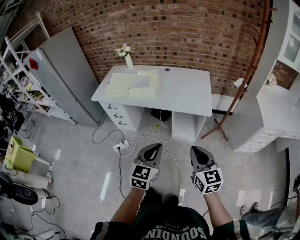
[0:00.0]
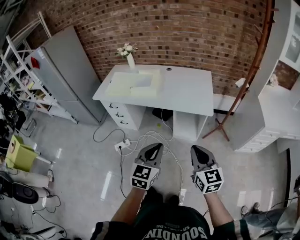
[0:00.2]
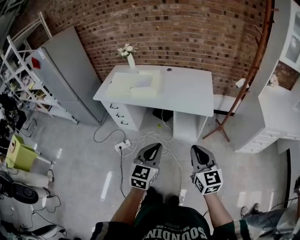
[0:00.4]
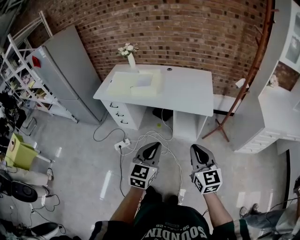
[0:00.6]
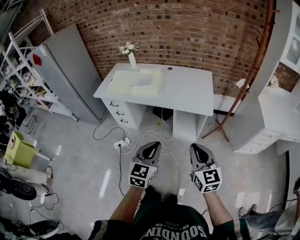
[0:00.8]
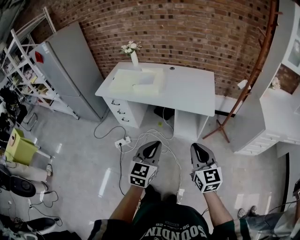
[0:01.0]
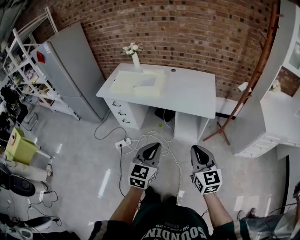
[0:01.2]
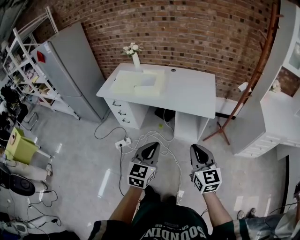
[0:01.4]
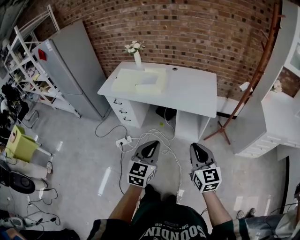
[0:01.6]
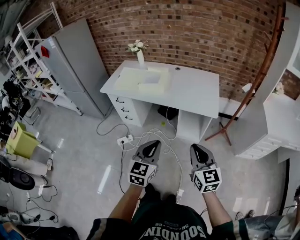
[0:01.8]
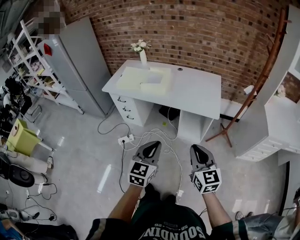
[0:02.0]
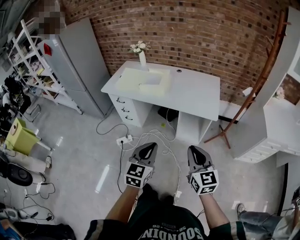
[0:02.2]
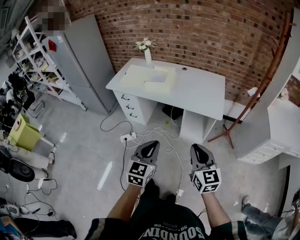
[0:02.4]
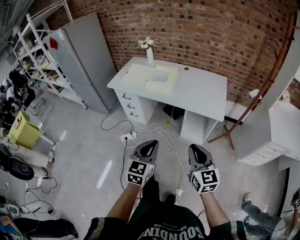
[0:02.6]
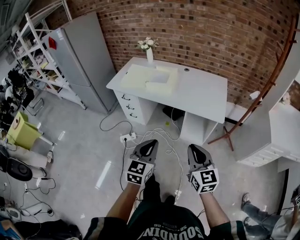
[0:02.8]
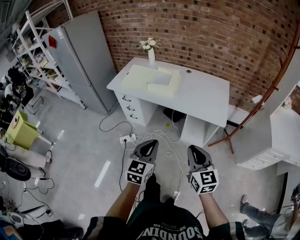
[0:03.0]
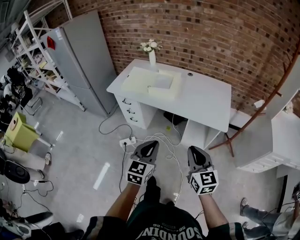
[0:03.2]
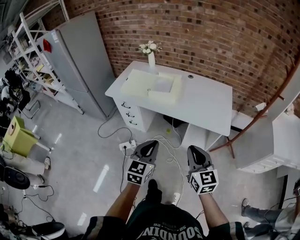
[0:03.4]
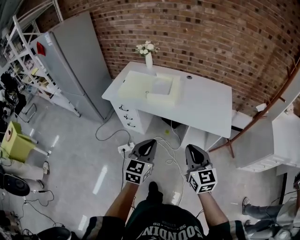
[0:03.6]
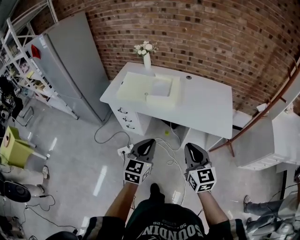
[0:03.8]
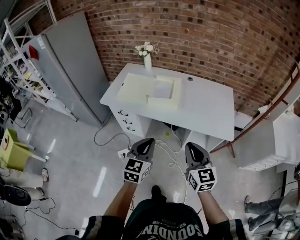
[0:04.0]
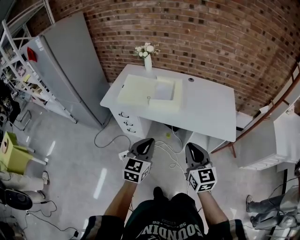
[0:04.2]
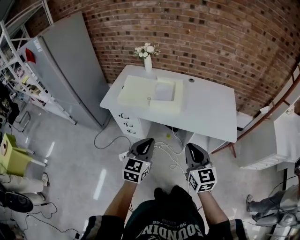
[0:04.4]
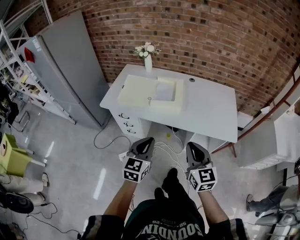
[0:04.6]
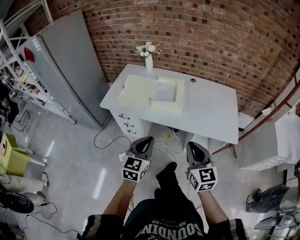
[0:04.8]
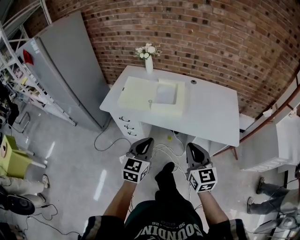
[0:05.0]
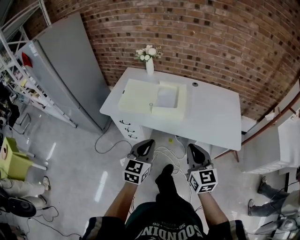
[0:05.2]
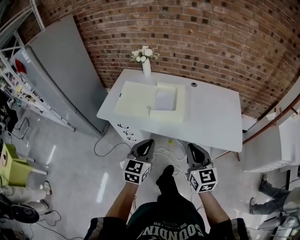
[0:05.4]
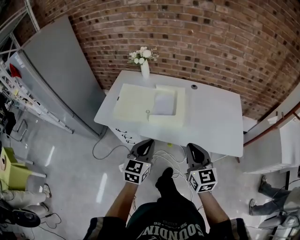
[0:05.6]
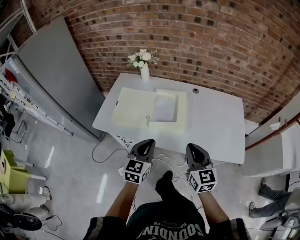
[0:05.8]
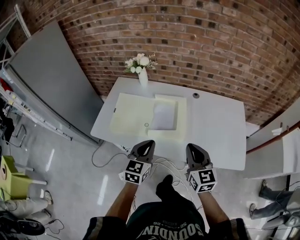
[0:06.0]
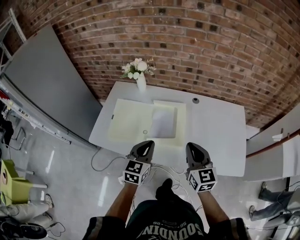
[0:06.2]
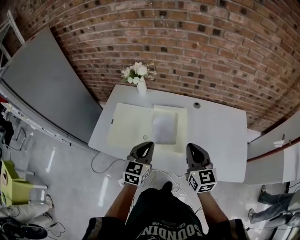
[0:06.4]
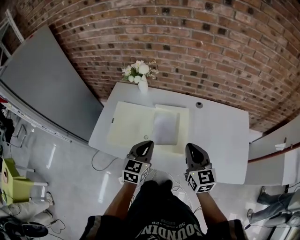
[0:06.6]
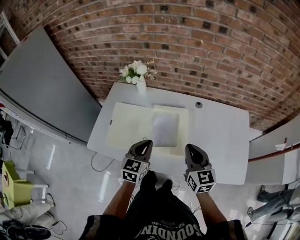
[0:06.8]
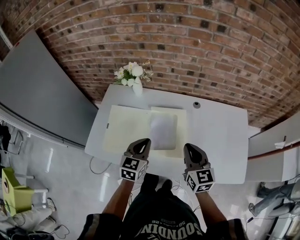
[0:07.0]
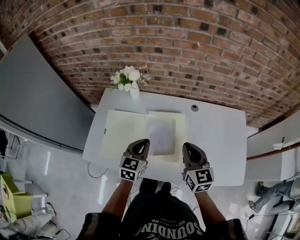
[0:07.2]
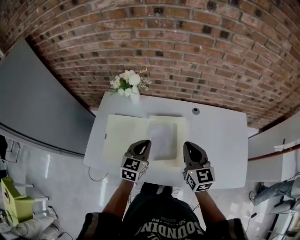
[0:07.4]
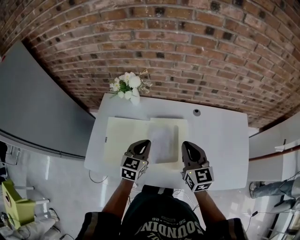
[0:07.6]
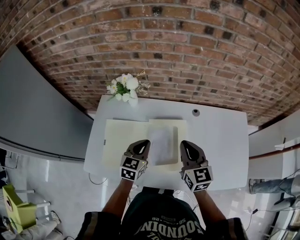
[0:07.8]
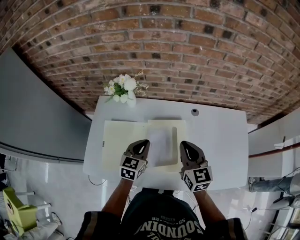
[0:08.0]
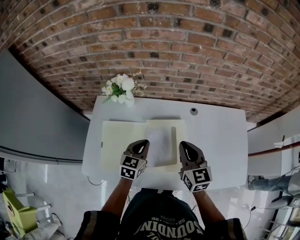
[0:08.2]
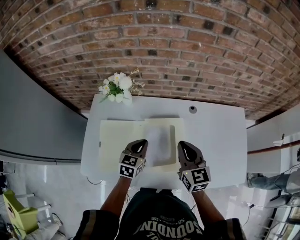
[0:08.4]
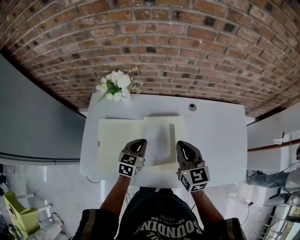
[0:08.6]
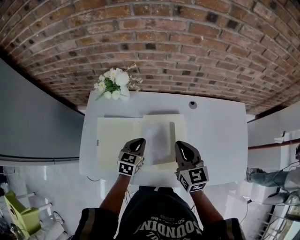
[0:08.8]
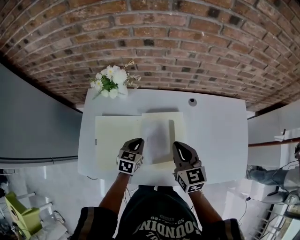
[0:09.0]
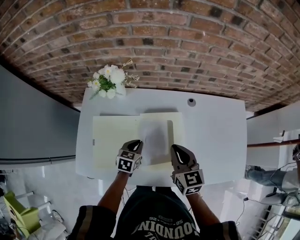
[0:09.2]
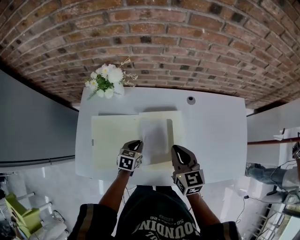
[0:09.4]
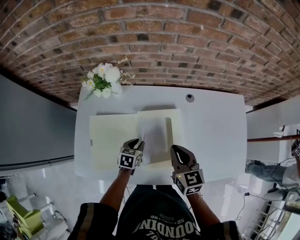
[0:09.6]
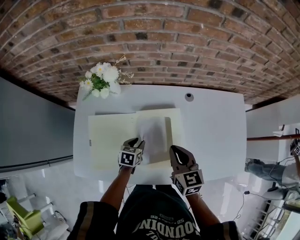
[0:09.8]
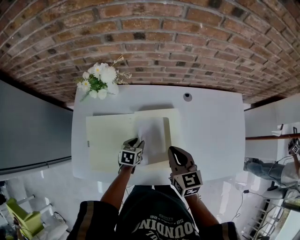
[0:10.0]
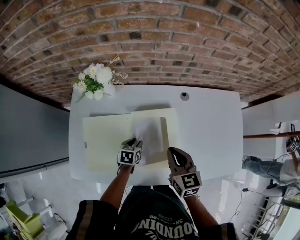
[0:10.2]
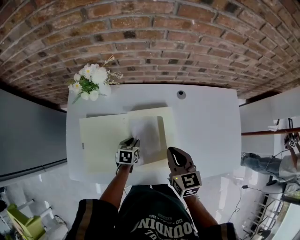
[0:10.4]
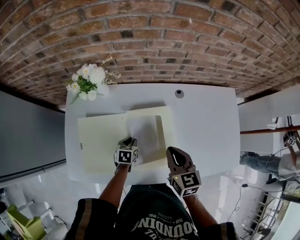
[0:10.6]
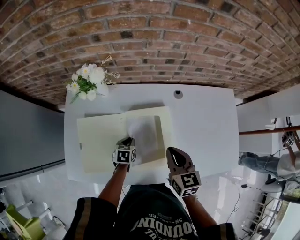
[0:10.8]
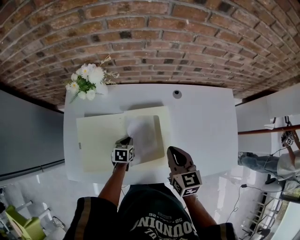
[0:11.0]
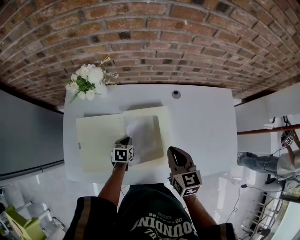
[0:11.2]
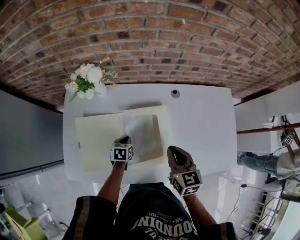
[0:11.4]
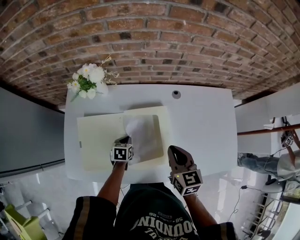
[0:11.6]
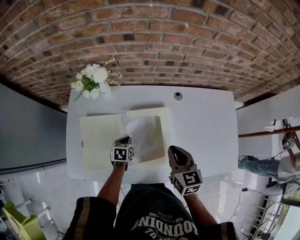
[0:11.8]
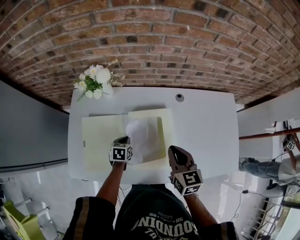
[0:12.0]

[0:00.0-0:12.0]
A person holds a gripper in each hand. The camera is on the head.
0.0 to 1.6 s: The grippers stay close to where they were, moving slightly.
1.6 to 3.0 s: The grippers both shift to the left by approximately 5 cm.
3.0 to 4.4 s: The grippers both shift forward and to the left by roughly 25 cm.
4.4 to 6.0 s: The grippers both shift forward by roughly 25 cm.
6.0 to 7.6 s: Both grippers move forward, roughly 25 cm.
7.6 to 9.0 s: The left gripper goes approximately 10 cm downward. Meanwhile the right gripper shifts roughly 5 cm downward.
9.0 to 10.4 s: The left gripper goes some 10 cm downward, and opens up.
10.4 to 12.0 s: The left gripper closes up.

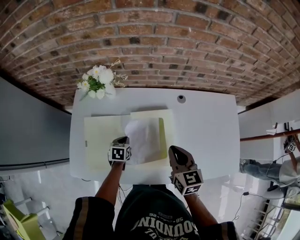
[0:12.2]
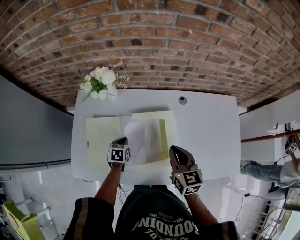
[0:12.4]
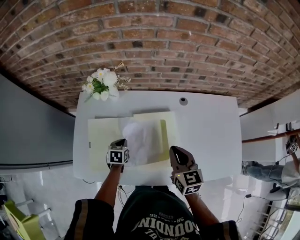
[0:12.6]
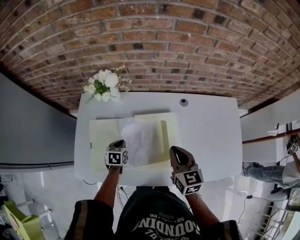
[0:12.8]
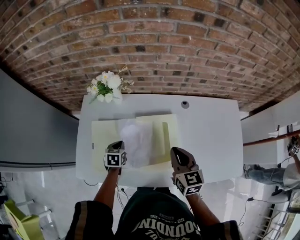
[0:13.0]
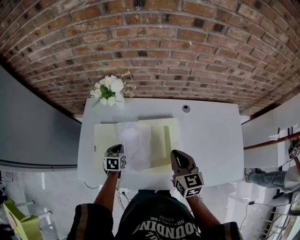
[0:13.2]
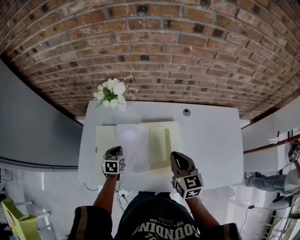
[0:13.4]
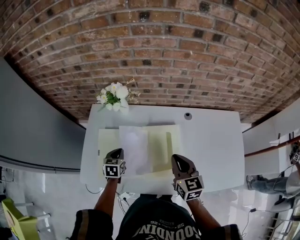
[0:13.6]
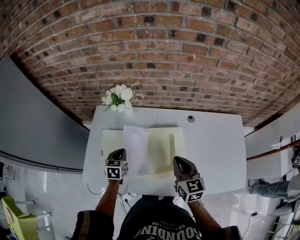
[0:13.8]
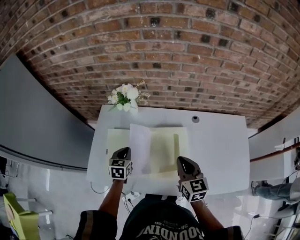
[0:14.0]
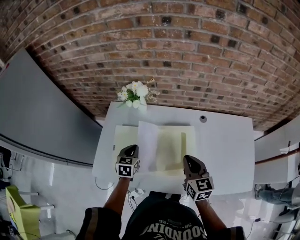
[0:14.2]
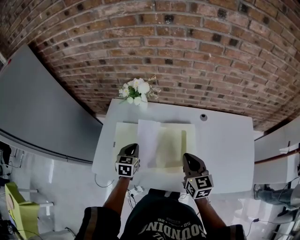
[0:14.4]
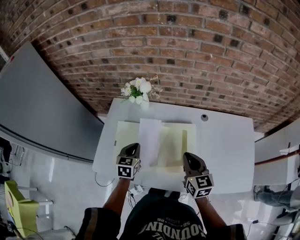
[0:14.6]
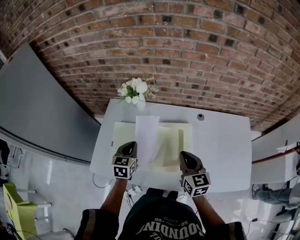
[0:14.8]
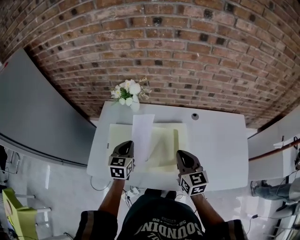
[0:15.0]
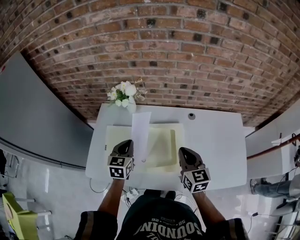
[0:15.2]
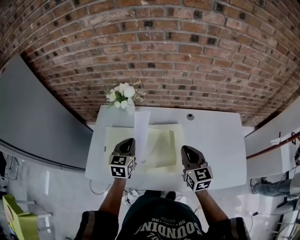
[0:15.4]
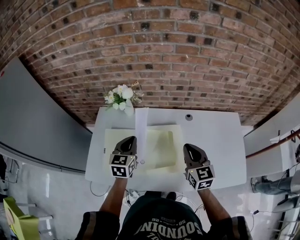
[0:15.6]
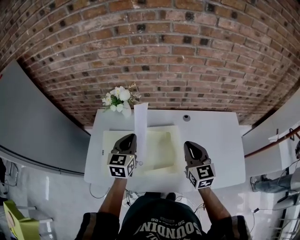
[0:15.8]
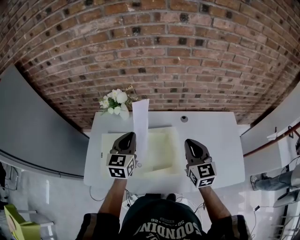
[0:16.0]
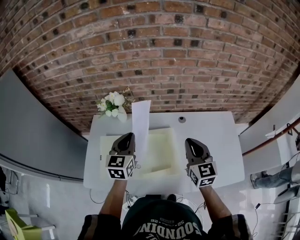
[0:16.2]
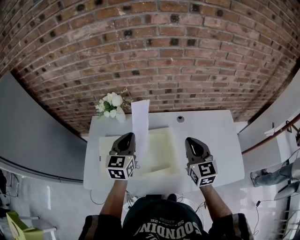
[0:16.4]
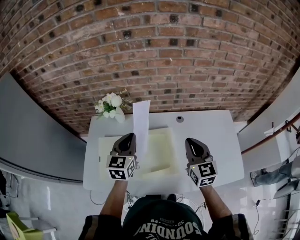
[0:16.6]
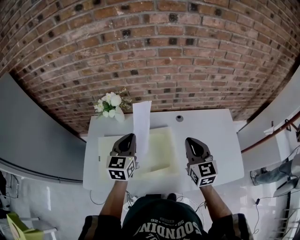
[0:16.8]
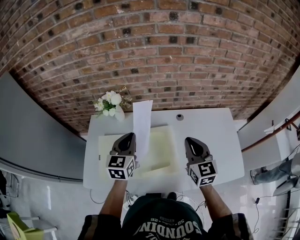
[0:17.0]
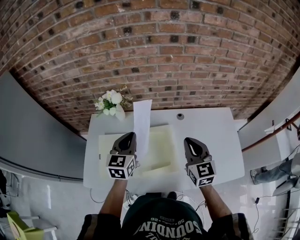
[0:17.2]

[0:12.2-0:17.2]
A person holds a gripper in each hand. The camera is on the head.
12.2 to 13.8 s: The left gripper travels upward and to the left by roughly 15 cm.
13.8 to 15.6 s: The left gripper moves upward and to the right, approximately 15 cm, and swivels approximately 20 degrees. The right gripper moves to the right, roughly 5 cm.
15.6 to 17.2 s: The left gripper moves upward, some 5 cm.

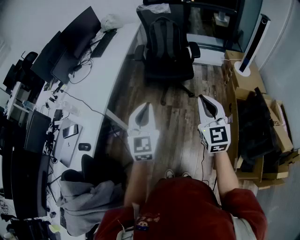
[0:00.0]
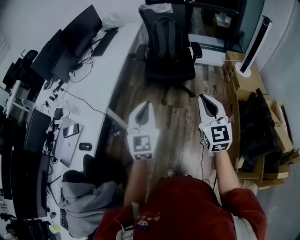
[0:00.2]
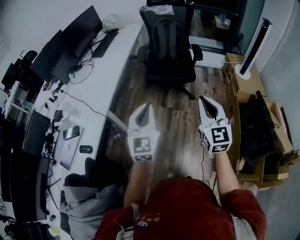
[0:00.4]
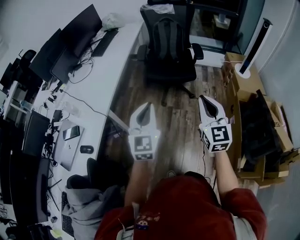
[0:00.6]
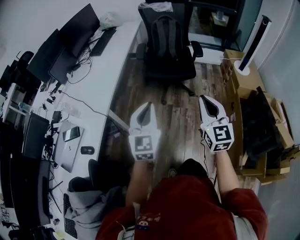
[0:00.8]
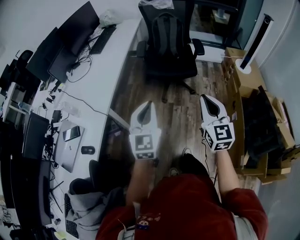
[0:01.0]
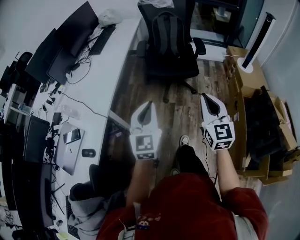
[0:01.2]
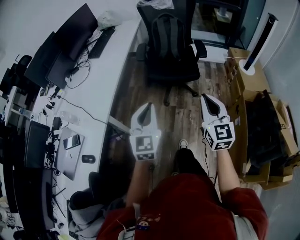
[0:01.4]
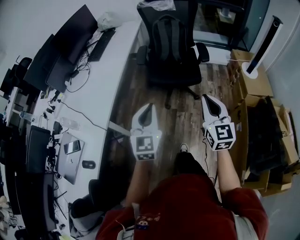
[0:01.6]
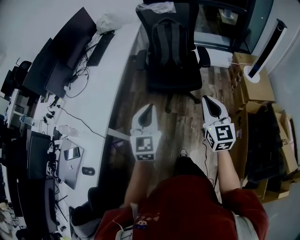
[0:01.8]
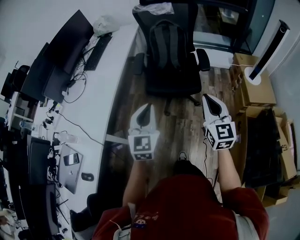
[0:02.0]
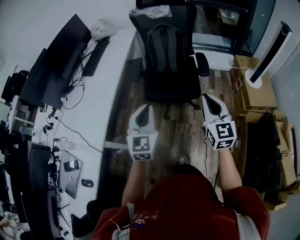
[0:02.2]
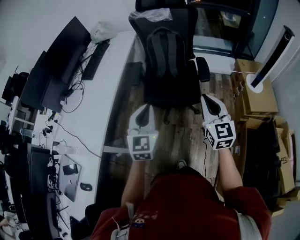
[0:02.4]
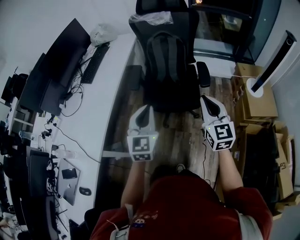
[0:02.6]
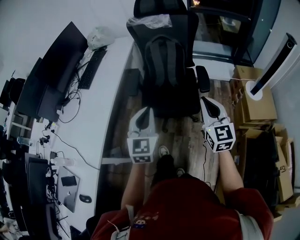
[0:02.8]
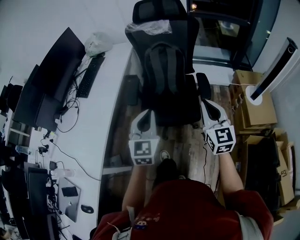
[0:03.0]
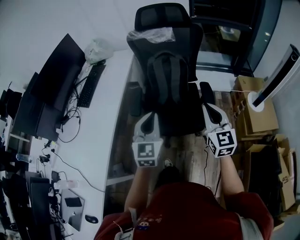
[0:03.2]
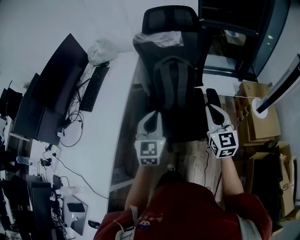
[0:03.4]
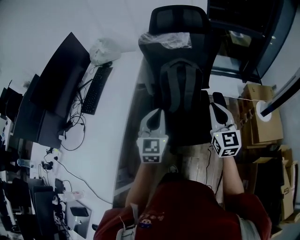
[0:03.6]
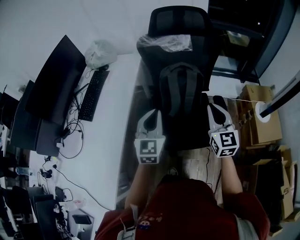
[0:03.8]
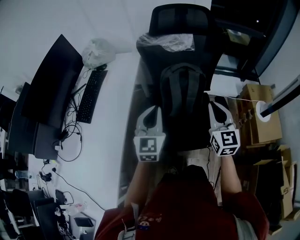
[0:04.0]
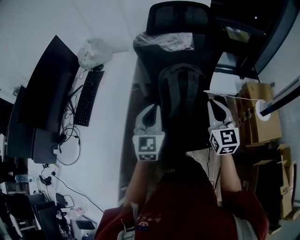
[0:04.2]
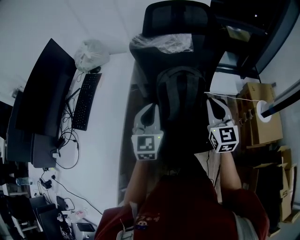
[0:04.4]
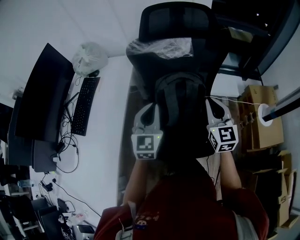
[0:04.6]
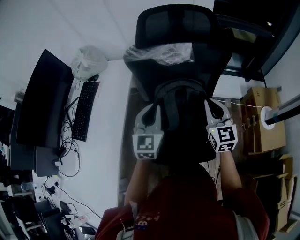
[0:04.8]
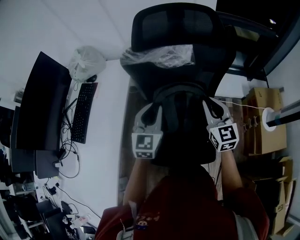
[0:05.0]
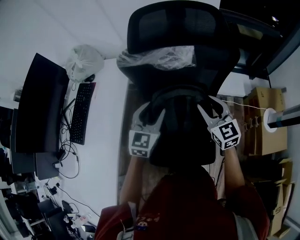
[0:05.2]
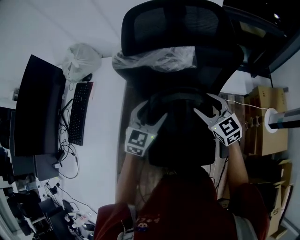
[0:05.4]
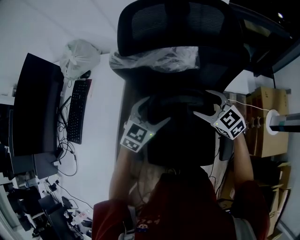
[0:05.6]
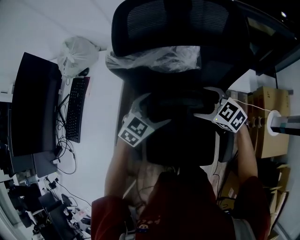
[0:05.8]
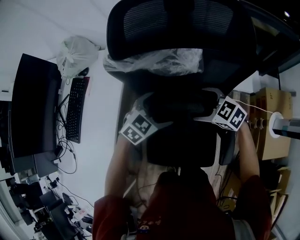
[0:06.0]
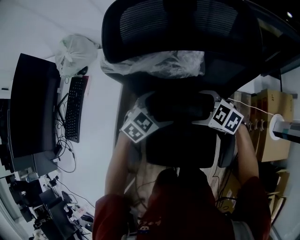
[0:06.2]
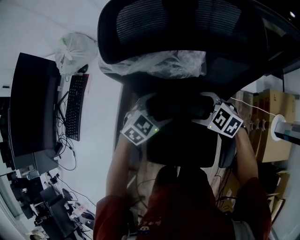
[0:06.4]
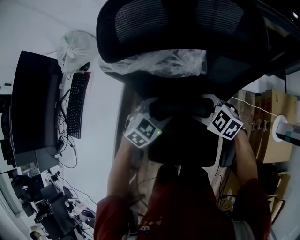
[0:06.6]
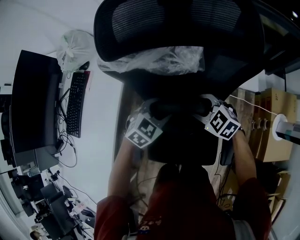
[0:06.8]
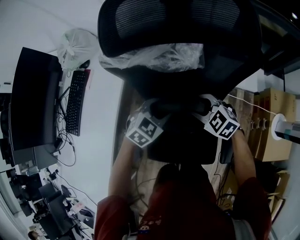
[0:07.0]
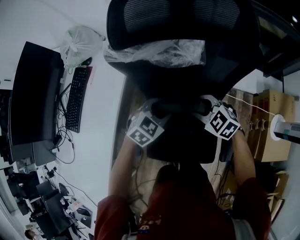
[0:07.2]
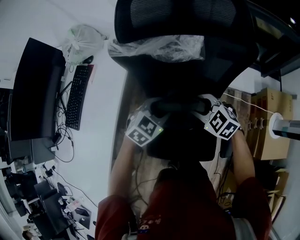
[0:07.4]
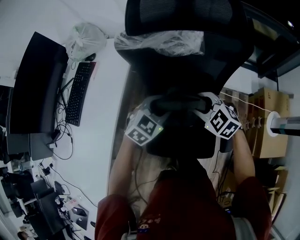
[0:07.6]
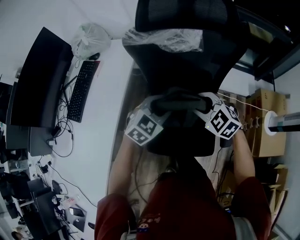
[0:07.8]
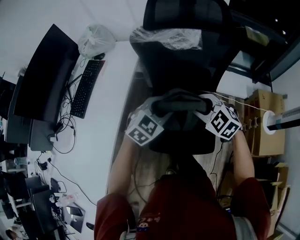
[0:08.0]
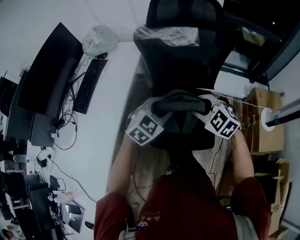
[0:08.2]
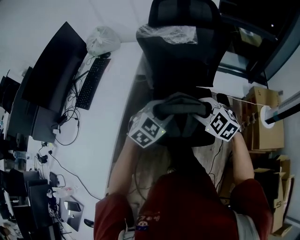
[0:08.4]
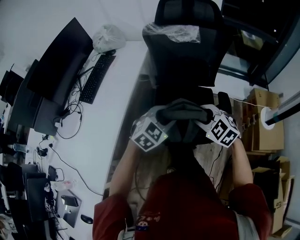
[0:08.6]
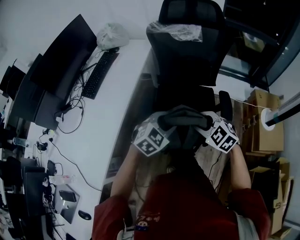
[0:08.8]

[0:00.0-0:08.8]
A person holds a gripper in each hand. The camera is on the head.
0.0 to 1.4 s: The right gripper is displaced forward by roughly 10 cm. Meanwhile the left gripper is displaced forward and to the left by about 10 cm.
1.4 to 3.0 s: The two grippers travel together, forward, some 40 cm.
3.0 to 4.4 s: The two grippers go about 35 cm forward.
4.4 to 5.8 s: The right gripper travels forward and downward by approximately 25 cm, changes its angle by roughly 60 degrees, and opens; the left gripper heads forward, downward and to the right, covering about 30 cm, turns by roughly 40 degrees, and opens its fingers.
5.8 to 7.4 s: The left gripper closes its fingers; the right gripper shifts by approximately 5 cm, and closes its fingers.
7.4 to 8.8 s: Both grippers move backward, roughly 40 cm.
